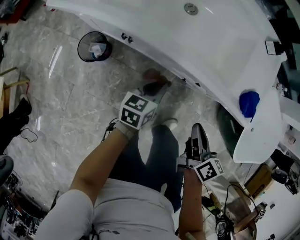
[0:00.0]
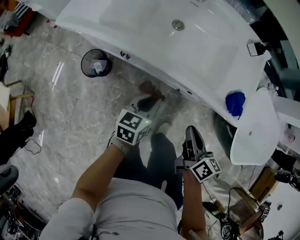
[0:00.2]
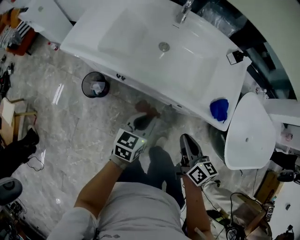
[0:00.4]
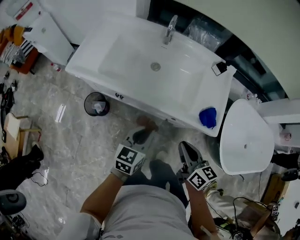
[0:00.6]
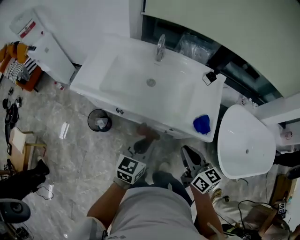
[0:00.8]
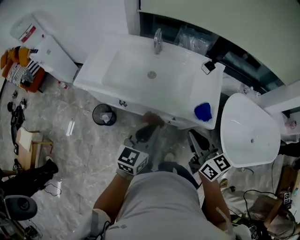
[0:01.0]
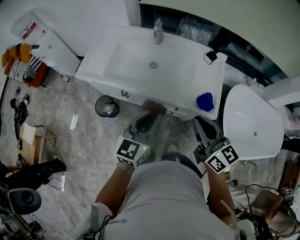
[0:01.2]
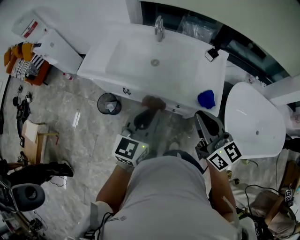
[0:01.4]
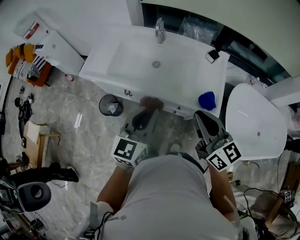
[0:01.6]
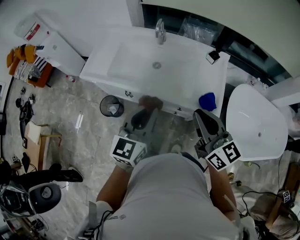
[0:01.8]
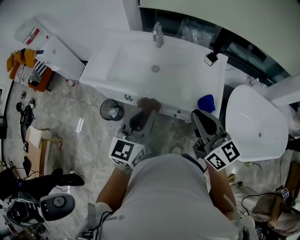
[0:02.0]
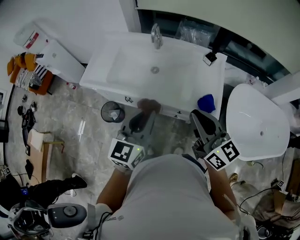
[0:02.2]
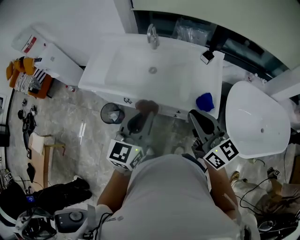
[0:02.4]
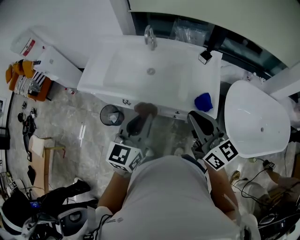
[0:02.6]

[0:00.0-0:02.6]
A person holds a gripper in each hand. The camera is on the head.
0.0 to 1.2 s: The grippers both shift upward by about 35 cm. The right gripper changes its angle by about 40 degrees; the left gripper rotates about 30 degrees.
1.2 to 2.6 s: There are only small adjustments of the grippers.

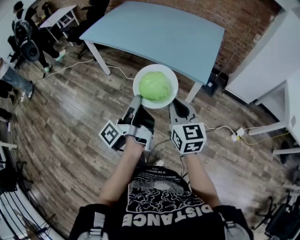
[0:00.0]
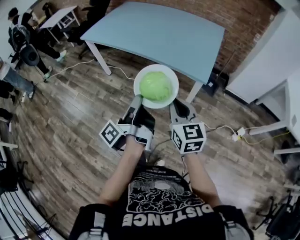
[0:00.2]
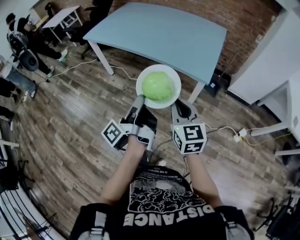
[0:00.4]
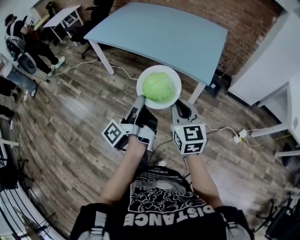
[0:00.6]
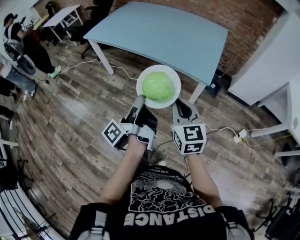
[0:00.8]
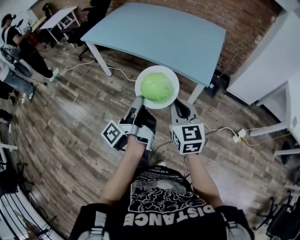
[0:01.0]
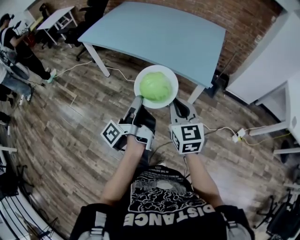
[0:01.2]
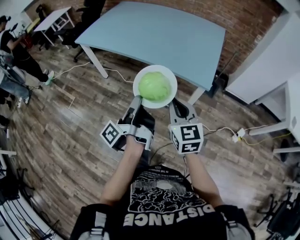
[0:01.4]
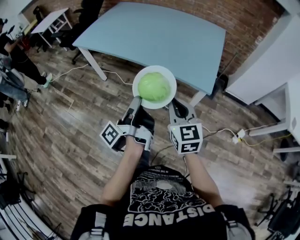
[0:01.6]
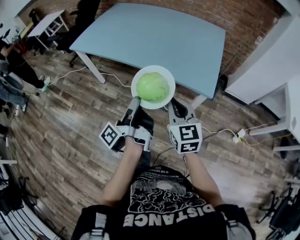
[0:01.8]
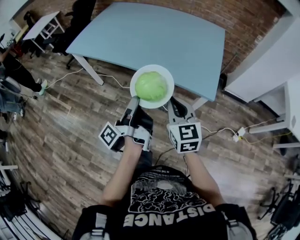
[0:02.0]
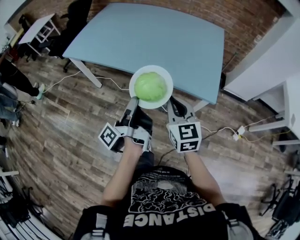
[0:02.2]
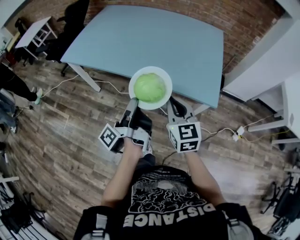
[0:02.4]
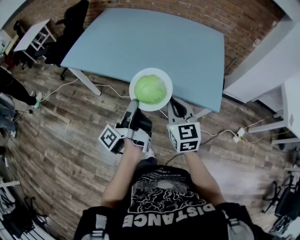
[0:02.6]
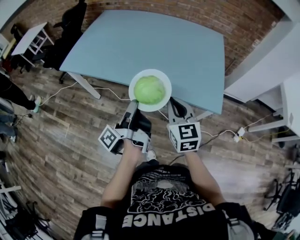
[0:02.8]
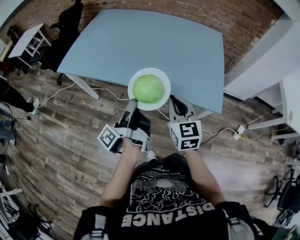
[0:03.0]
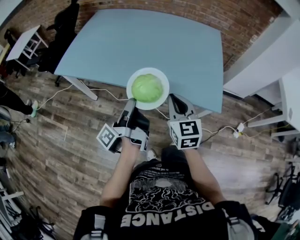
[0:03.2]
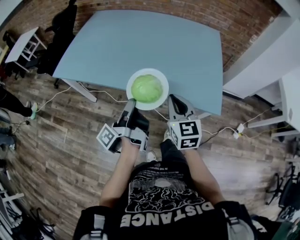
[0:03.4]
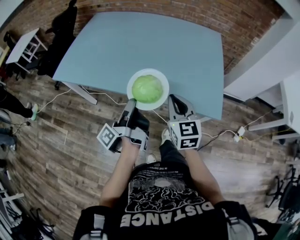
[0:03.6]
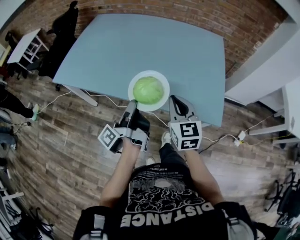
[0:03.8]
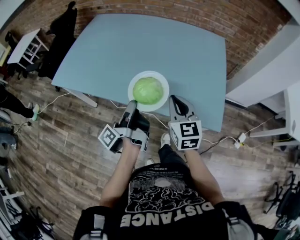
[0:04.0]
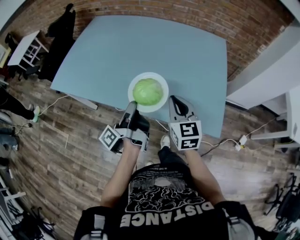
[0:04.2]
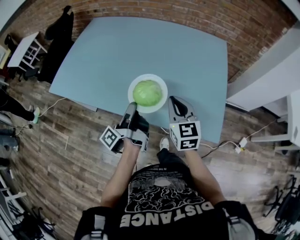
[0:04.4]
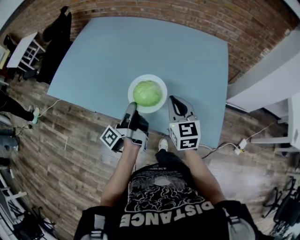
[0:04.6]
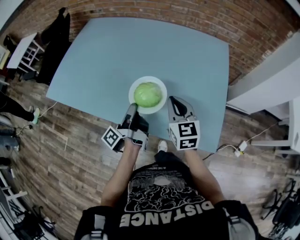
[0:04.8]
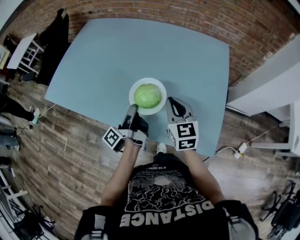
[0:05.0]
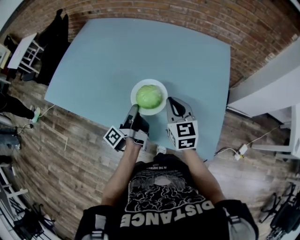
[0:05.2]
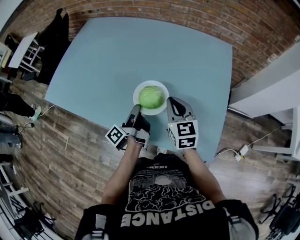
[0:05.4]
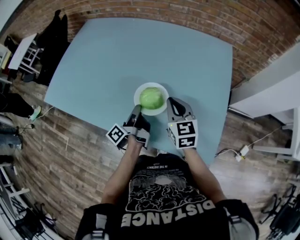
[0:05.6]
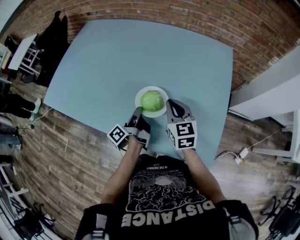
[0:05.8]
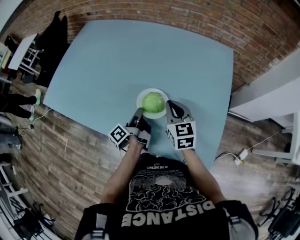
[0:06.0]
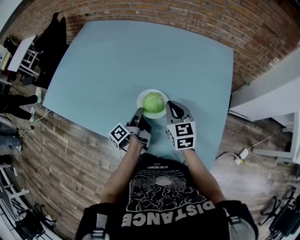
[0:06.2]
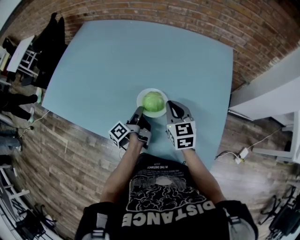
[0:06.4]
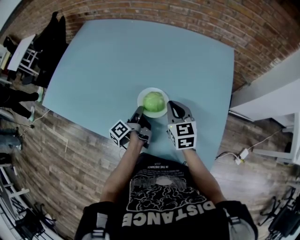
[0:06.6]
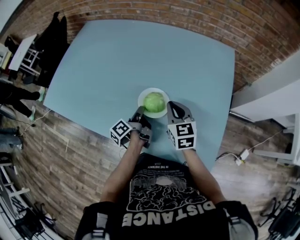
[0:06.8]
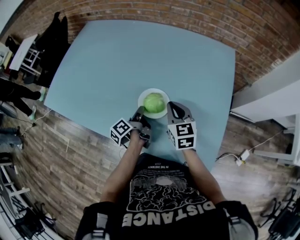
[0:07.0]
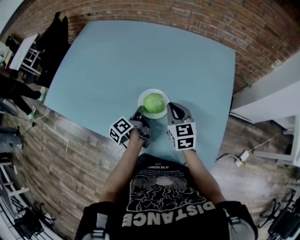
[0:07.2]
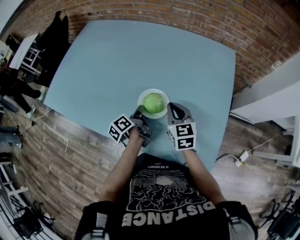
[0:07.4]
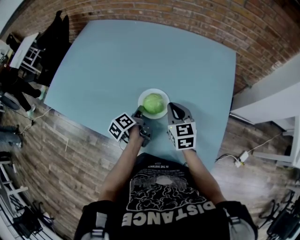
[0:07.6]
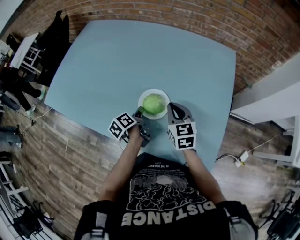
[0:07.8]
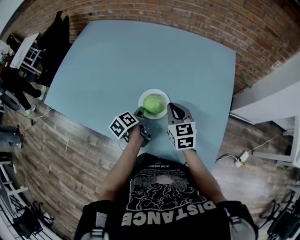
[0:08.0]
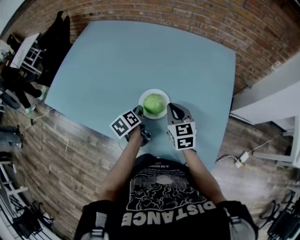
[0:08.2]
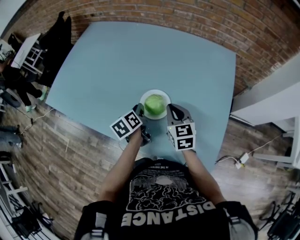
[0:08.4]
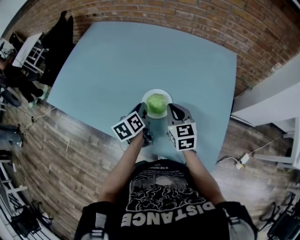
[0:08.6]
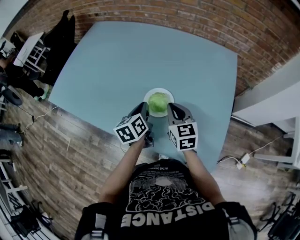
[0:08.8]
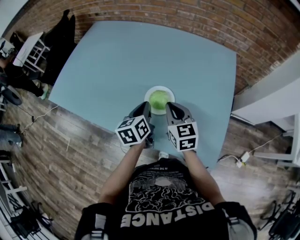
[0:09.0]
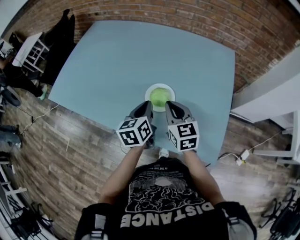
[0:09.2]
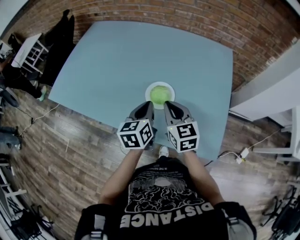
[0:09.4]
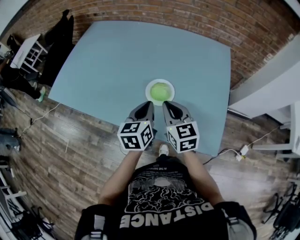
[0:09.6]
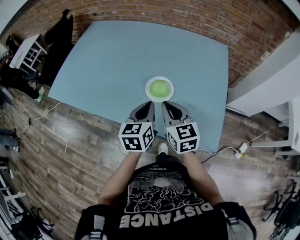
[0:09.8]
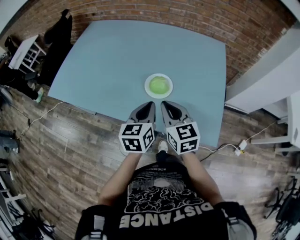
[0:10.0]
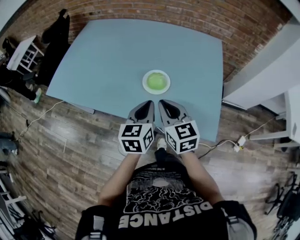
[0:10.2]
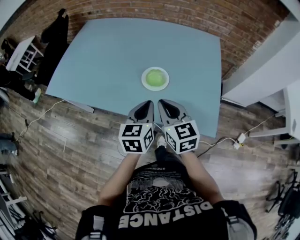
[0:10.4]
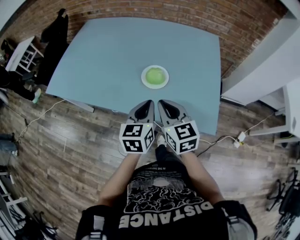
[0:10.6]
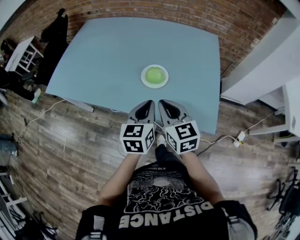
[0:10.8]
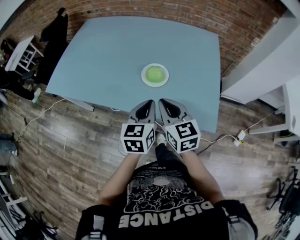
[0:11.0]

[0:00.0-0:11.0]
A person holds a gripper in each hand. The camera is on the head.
0.0 to 1.6 s: The right gripper shifts by about 10 cm.
1.6 to 3.2 s: The right gripper ends up roughly 20 cm from where it was.
3.2 to 4.8 s: The right gripper shifts by approximately 20 cm.
4.8 to 6.2 s: The right gripper ends up some 10 cm from where it was.
7.8 to 9.4 s: The right gripper changes place by roughly 10 cm.
9.4 to 11.0 s: The right gripper shifts by about 15 cm.

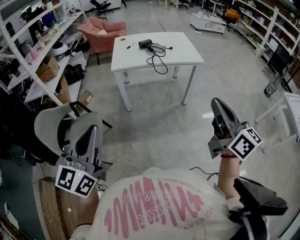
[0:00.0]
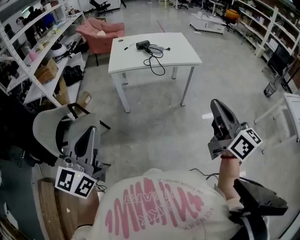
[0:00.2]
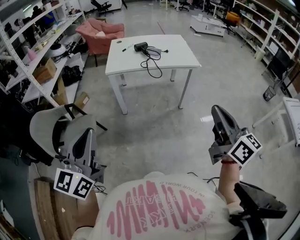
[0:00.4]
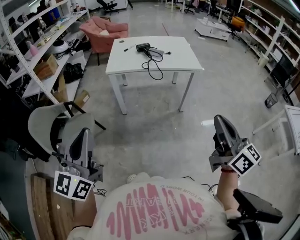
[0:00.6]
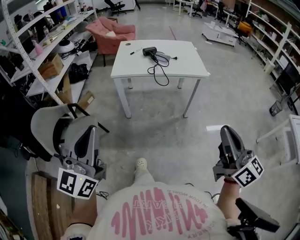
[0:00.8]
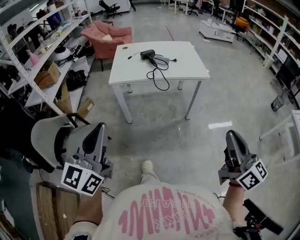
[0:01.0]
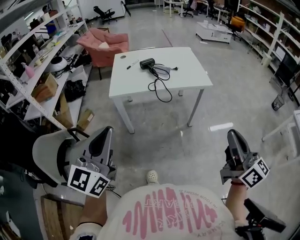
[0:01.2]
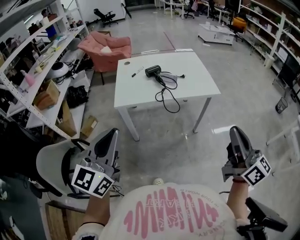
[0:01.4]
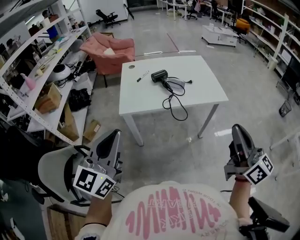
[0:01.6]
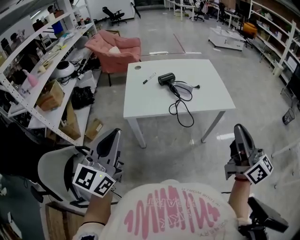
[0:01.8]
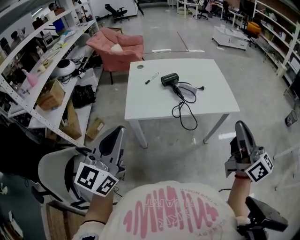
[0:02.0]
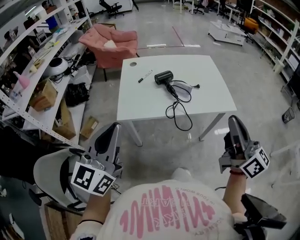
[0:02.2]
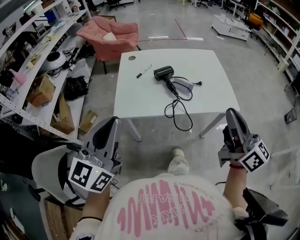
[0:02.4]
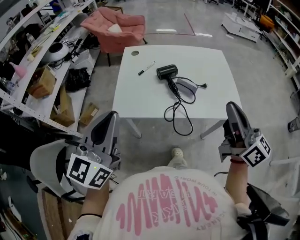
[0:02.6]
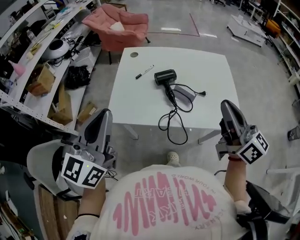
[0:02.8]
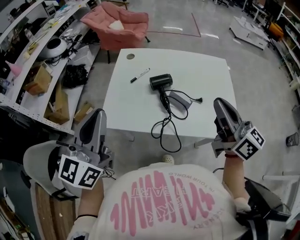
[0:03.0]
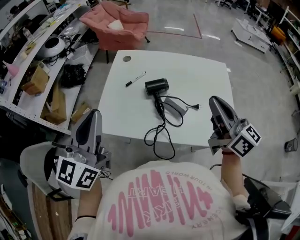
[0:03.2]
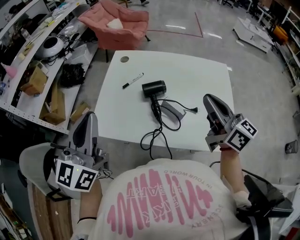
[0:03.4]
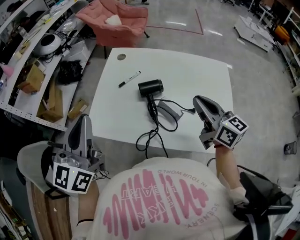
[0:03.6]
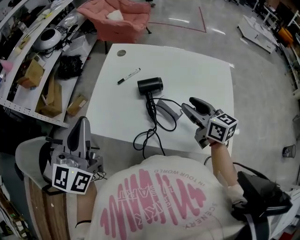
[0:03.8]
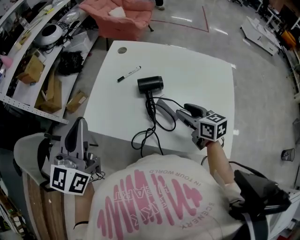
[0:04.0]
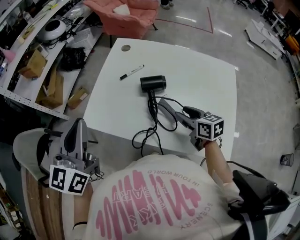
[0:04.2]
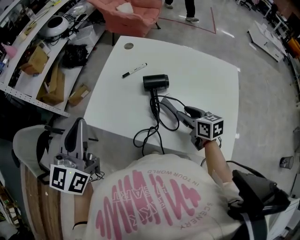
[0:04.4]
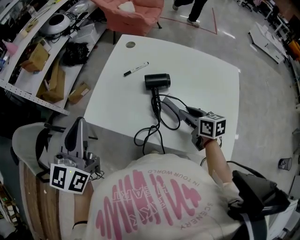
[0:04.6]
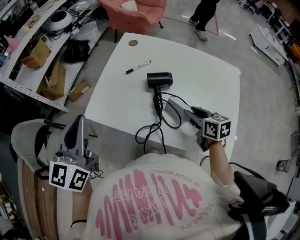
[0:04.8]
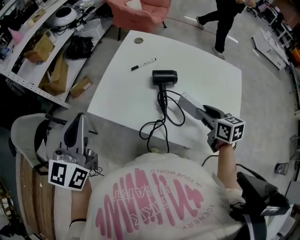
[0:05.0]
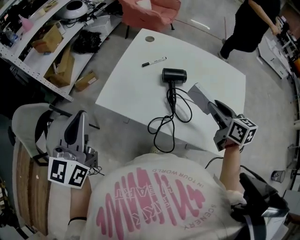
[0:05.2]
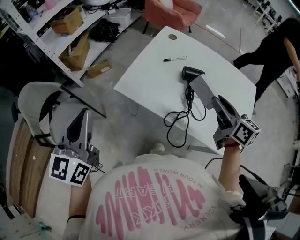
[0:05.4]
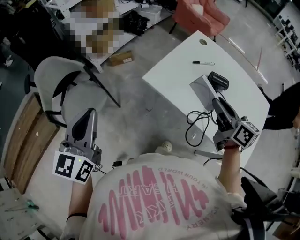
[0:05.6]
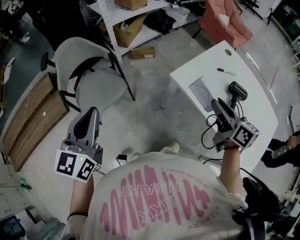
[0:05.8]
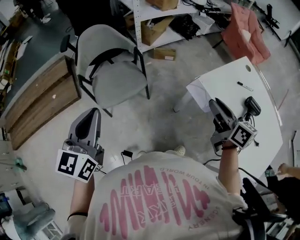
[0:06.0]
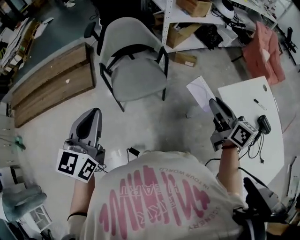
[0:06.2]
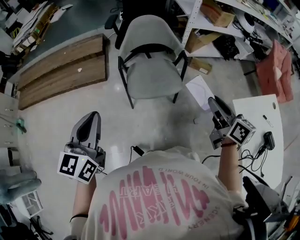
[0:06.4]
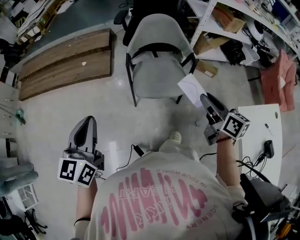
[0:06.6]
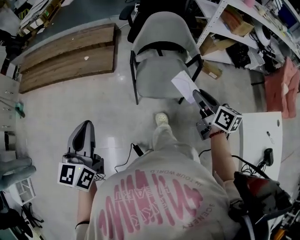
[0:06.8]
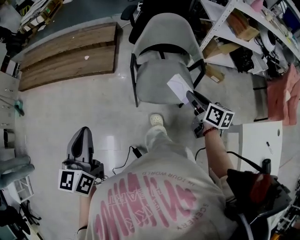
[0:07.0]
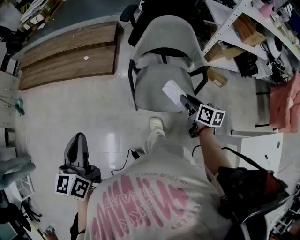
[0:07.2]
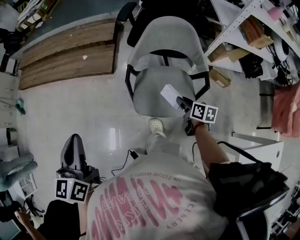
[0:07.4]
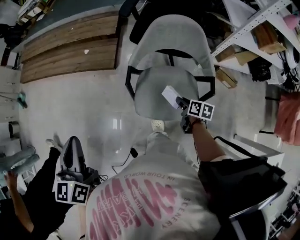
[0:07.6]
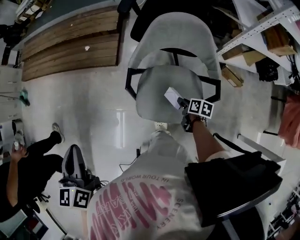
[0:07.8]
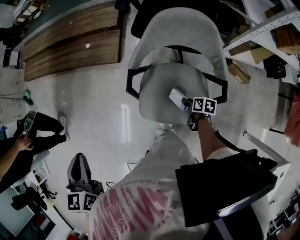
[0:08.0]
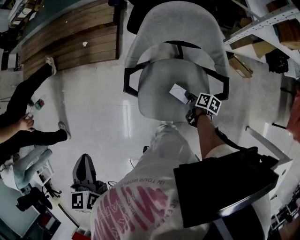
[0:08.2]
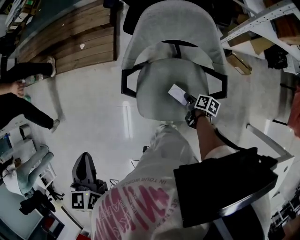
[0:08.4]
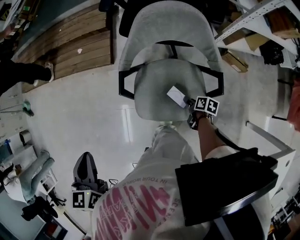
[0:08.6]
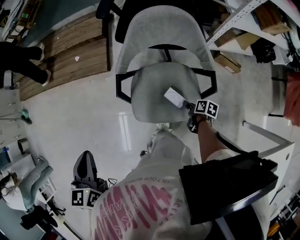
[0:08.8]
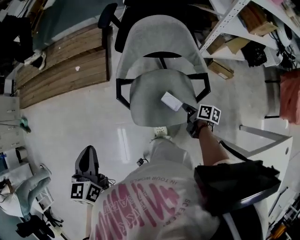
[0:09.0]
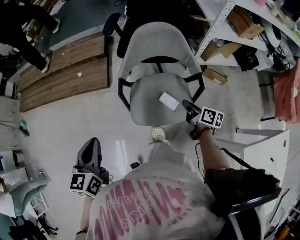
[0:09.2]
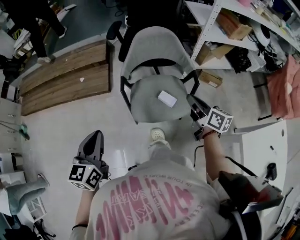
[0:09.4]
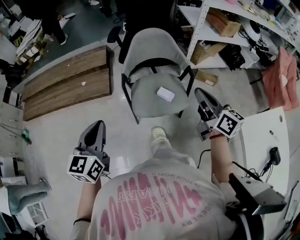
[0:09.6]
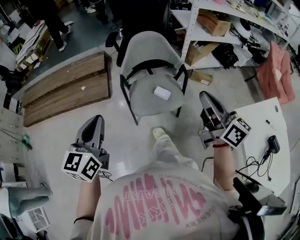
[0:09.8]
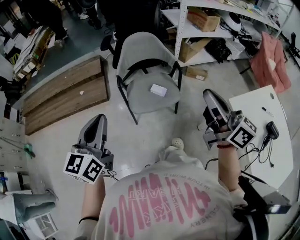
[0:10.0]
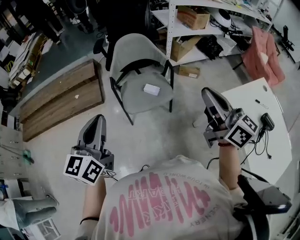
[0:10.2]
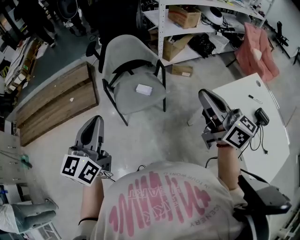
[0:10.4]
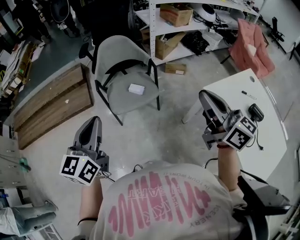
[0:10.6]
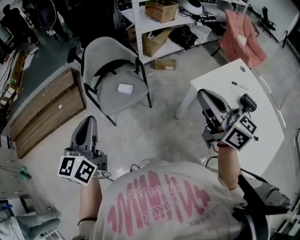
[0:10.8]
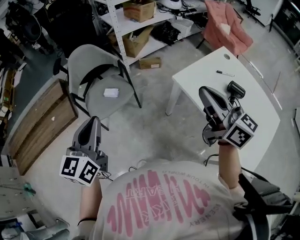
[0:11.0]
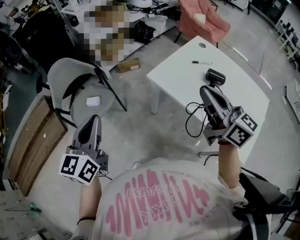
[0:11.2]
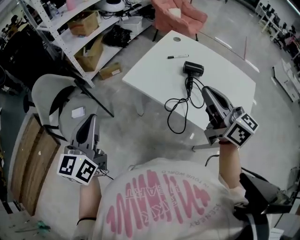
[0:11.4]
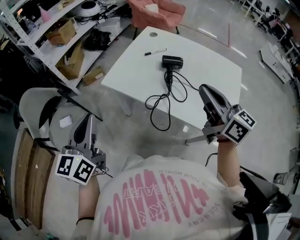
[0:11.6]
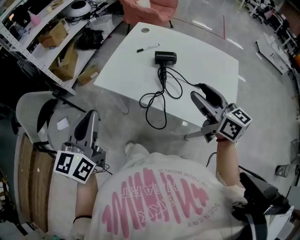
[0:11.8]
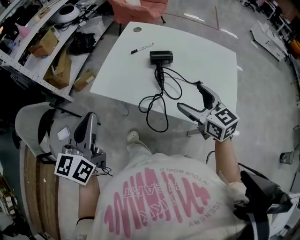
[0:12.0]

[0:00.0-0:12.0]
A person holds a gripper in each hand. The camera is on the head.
0.0 to 1.6 s: Both grippers move forward, approximately 25 cm.
1.6 to 3.0 s: The grippers both shift forward by about 30 cm. The right gripper turns by roughly 20 degrees.
3.0 to 4.4 s: The right gripper is displaced downward and forward by about 30 cm, points its fingers roughly 40 degrees further downward, and opens up. The left gripper moves downward, approximately 5 cm, and turns by about 20 degrees.
4.4 to 6.0 s: The right gripper ends up some 40 cm from where it was, and rotates some 40 degrees, while the left gripper ends up roughly 40 cm from where it was, and turns by approximately 40 degrees.
6.0 to 7.6 s: The left gripper changes place by about 30 cm, and rotates roughly 50 degrees; the right gripper ends up approximately 60 cm from where it was, and tilts its fingers roughly 30 degrees downward.
7.6 to 9.0 s: The right gripper moves some 15 cm downward and comes back; the left gripper moves downward, approximately 10 cm.
9.0 to 10.4 s: The right gripper shifts about 50 cm upward, and angles its fingers upward, by approximately 50 degrees. Meanwhile the left gripper ends up some 25 cm from where it was, and turns by about 40 degrees.
10.4 to 12.0 s: The pair of grippers is taken some 40 cm. The right gripper changes its angle by some 60 degrees, and opens its fingers. Meanwhile the left gripper rotates roughly 50 degrees.
